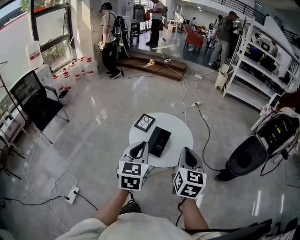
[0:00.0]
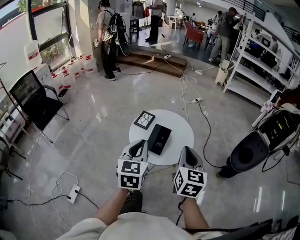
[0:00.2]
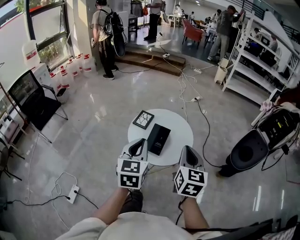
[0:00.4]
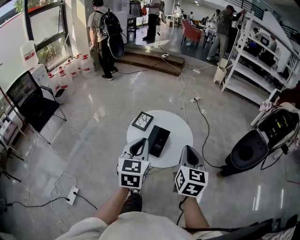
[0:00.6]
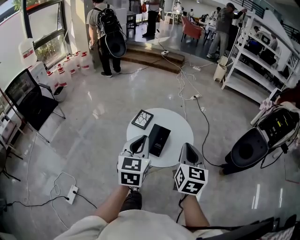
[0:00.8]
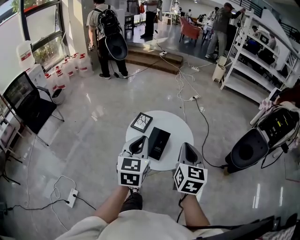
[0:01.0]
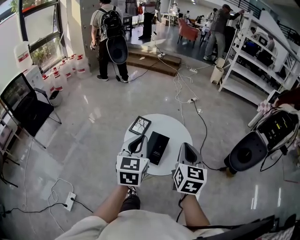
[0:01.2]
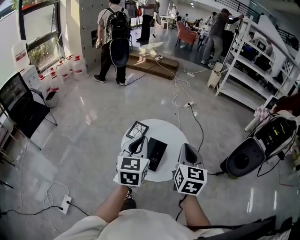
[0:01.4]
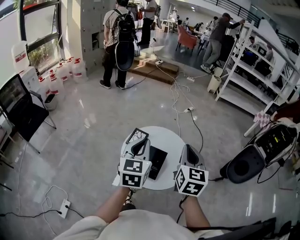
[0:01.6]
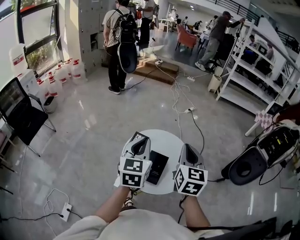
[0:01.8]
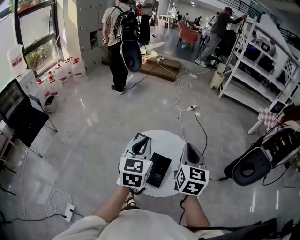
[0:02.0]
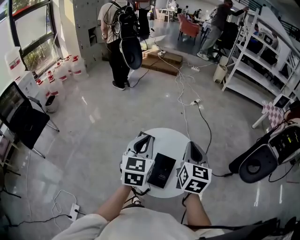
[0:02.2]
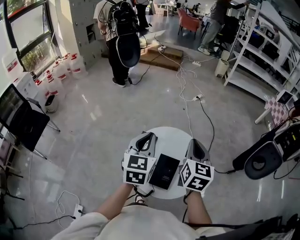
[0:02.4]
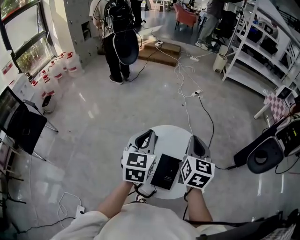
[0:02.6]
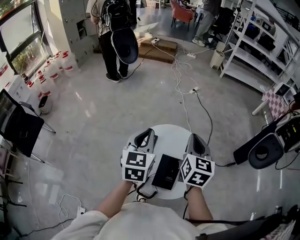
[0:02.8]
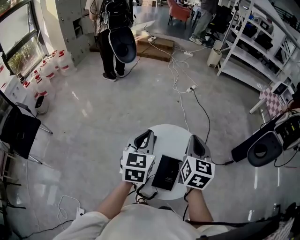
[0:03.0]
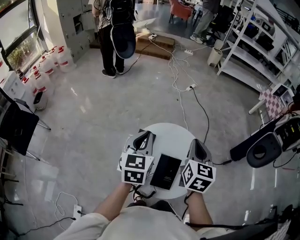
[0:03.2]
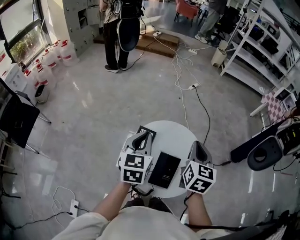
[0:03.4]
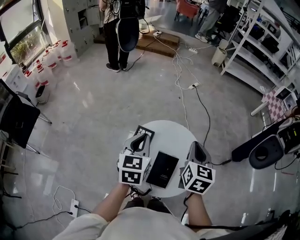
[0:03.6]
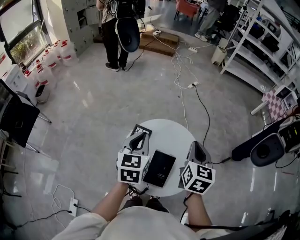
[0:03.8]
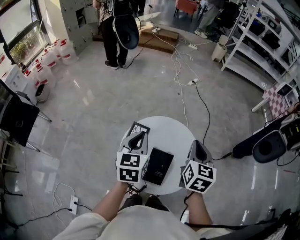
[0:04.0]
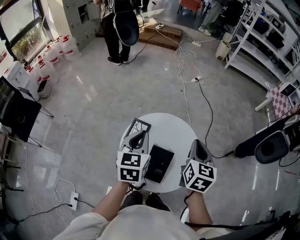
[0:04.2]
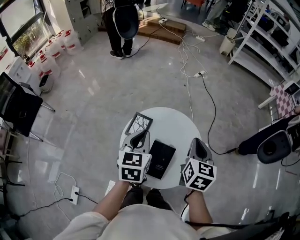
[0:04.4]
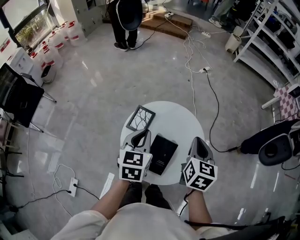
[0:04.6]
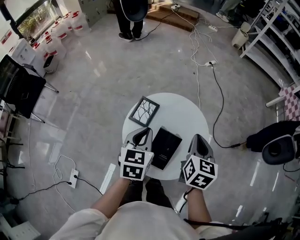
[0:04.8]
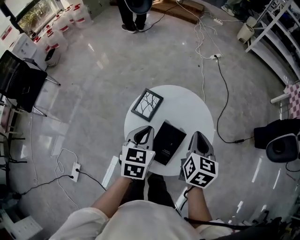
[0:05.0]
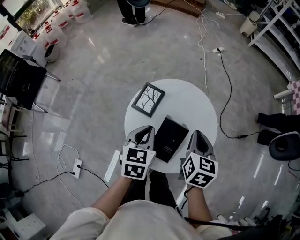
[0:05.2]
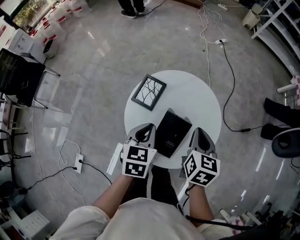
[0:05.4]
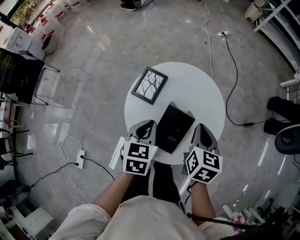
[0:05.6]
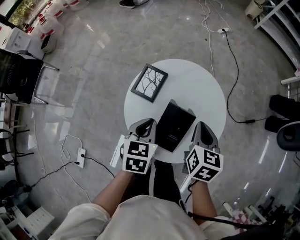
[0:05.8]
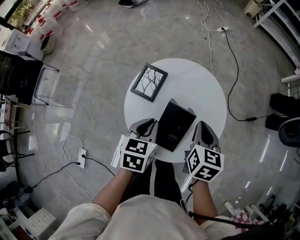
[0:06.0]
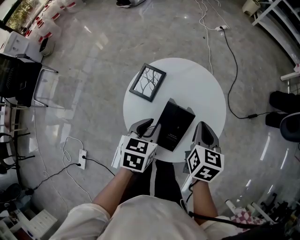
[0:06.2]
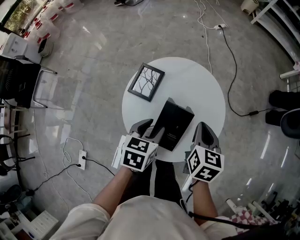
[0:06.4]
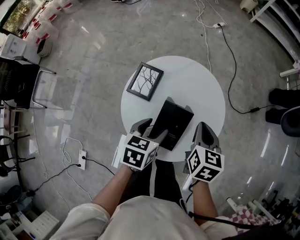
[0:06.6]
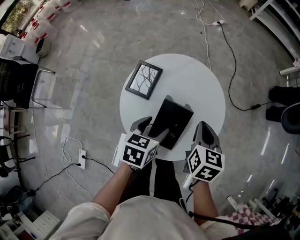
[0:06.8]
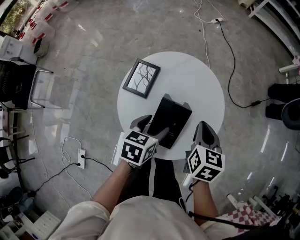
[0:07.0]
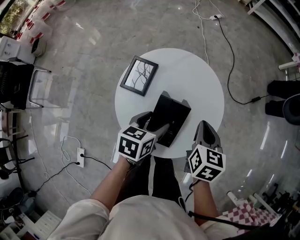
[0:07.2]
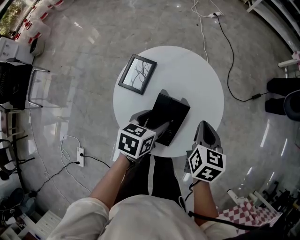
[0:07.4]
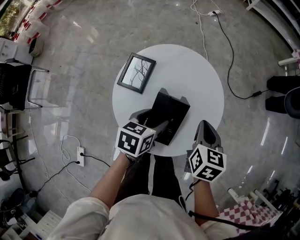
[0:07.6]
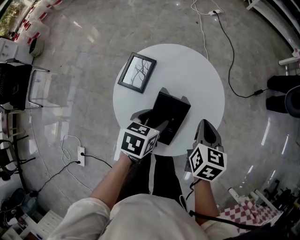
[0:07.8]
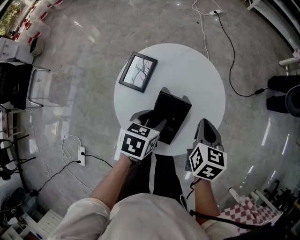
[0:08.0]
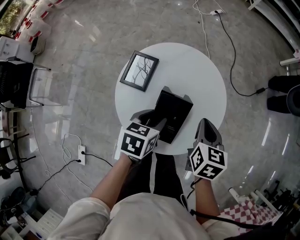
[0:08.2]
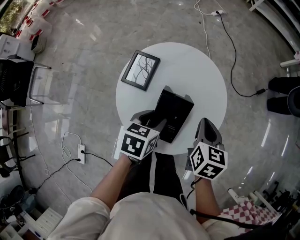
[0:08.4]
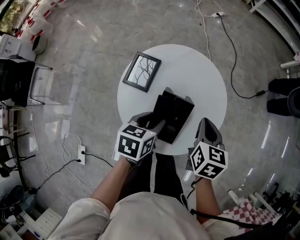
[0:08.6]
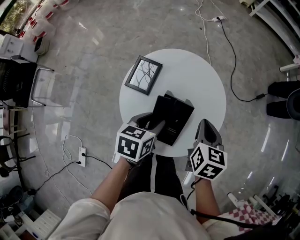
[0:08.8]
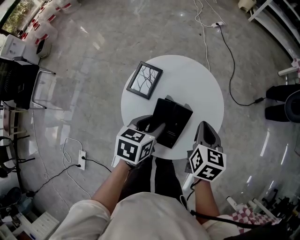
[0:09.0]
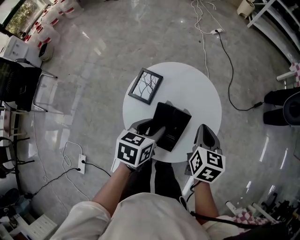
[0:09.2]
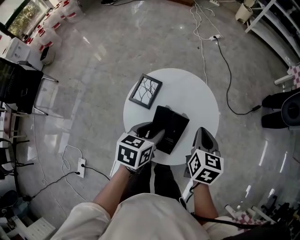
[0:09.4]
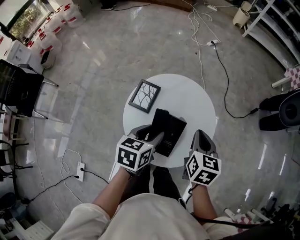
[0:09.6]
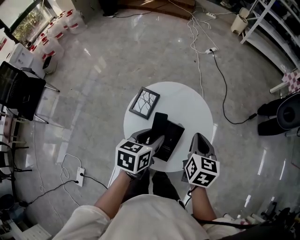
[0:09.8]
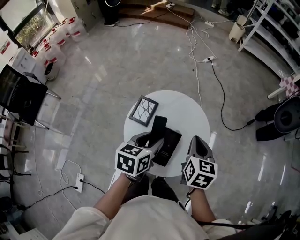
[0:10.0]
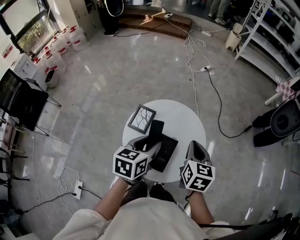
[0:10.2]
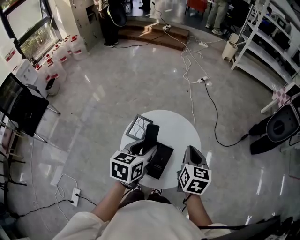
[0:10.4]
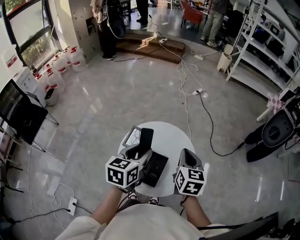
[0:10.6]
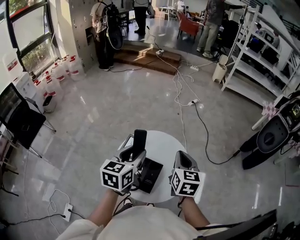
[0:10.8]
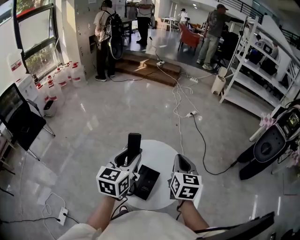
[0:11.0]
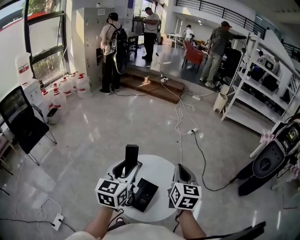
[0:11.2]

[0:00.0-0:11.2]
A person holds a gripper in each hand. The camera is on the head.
0:00.0 to 0:01.6: Both grippers travel together forward, approximately 15 cm.
0:01.6 to 0:03.2: The left gripper moves forward, downward and to the left, some 15 cm. The right gripper travels forward and downward by roughly 15 cm.
0:03.2 to 0:04.8: The left gripper travels downward and backward by approximately 10 cm, while the right gripper goes roughly 10 cm downward.
0:04.8 to 0:06.4: The right gripper travels downward by some 10 cm, while the left gripper goes some 10 cm downward and backward, rotates roughly 20 degrees, and opens its fingers.
0:06.4 to 0:08.0: The grippers stay close to where they were, moving slightly.
0:08.0 to 0:09.6: Both grippers travel together upward, approximately 5 cm.
0:09.6 to 0:11.2: The right gripper moves upward and forward, about 20 cm, and swivels roughly 30 degrees. Meanwhile the left gripper heads upward, covering about 20 cm, and turns by some 40 degrees.

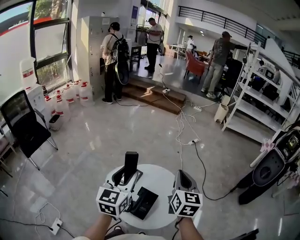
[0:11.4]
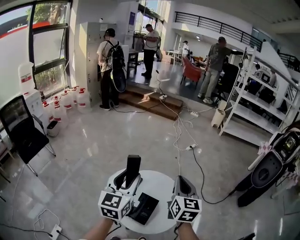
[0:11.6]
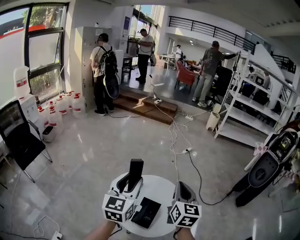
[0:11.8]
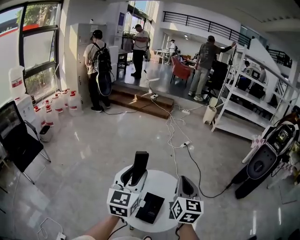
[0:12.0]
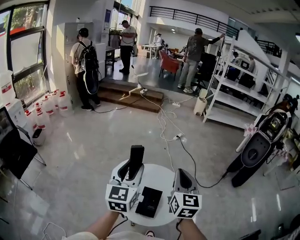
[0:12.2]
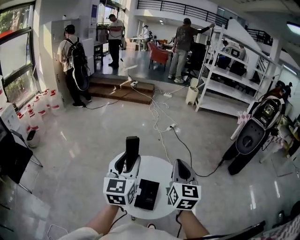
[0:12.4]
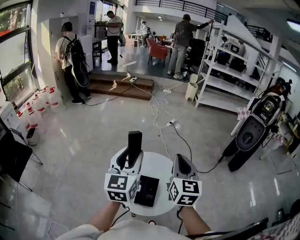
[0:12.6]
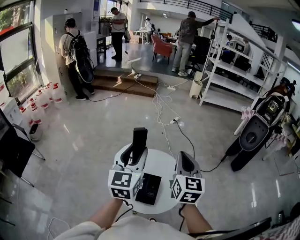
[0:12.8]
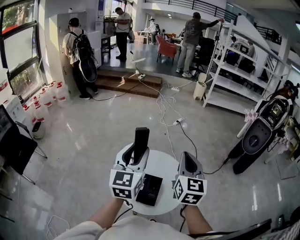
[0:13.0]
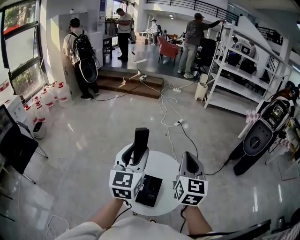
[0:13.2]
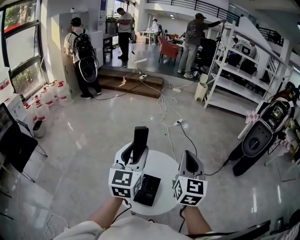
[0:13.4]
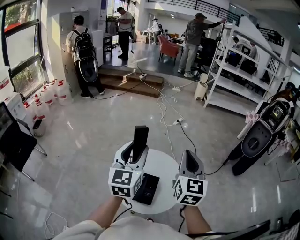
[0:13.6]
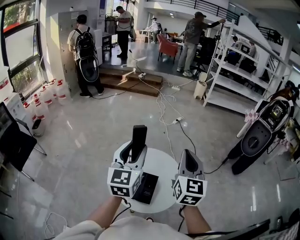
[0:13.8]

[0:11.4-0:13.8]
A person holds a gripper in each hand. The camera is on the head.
0:11.4 to 0:12.6: The right gripper shifts some 5 cm backward.
0:12.6 to 0:13.8: There are only small adjustments of the grippers.

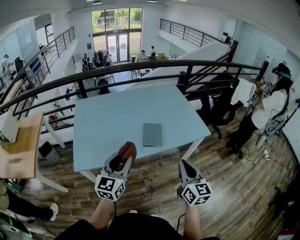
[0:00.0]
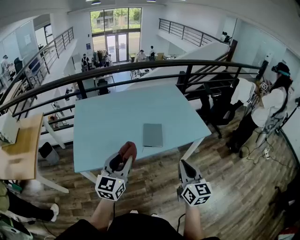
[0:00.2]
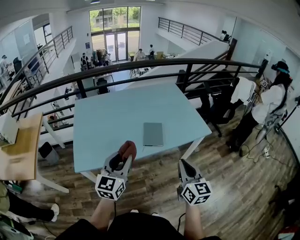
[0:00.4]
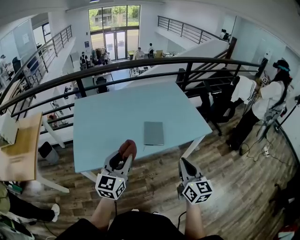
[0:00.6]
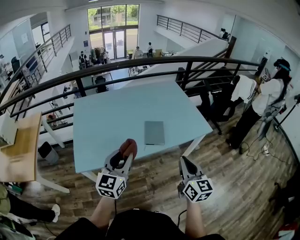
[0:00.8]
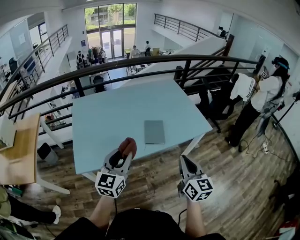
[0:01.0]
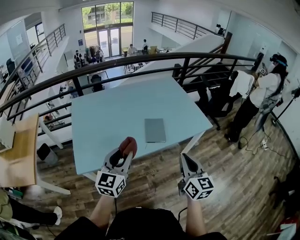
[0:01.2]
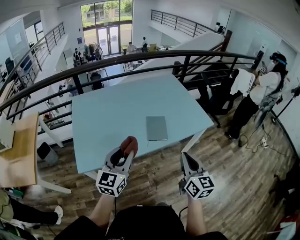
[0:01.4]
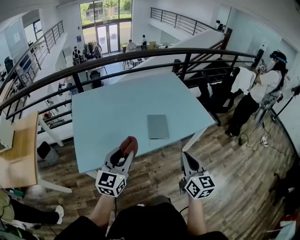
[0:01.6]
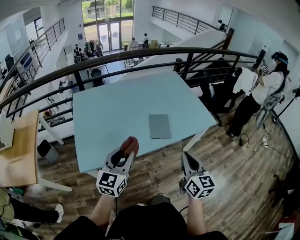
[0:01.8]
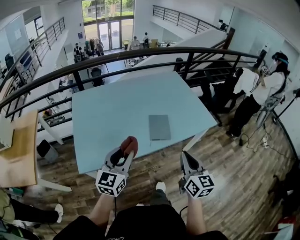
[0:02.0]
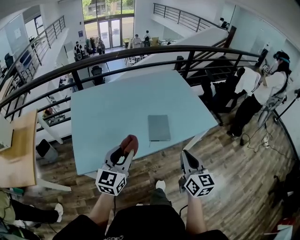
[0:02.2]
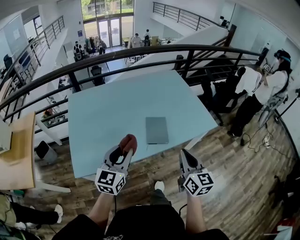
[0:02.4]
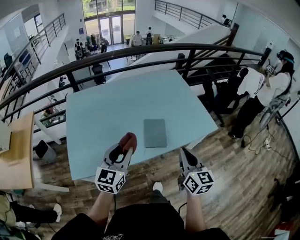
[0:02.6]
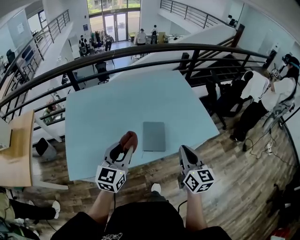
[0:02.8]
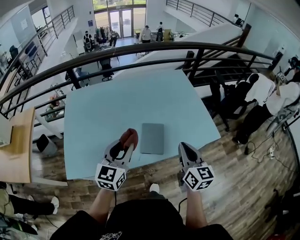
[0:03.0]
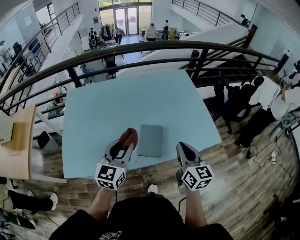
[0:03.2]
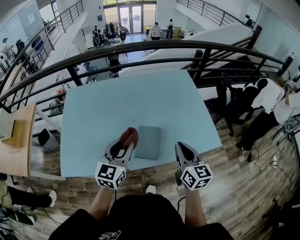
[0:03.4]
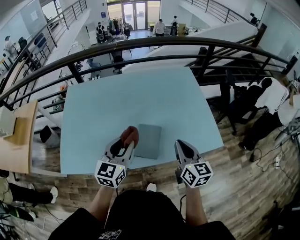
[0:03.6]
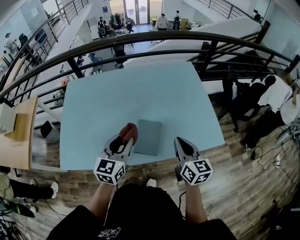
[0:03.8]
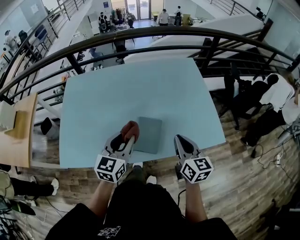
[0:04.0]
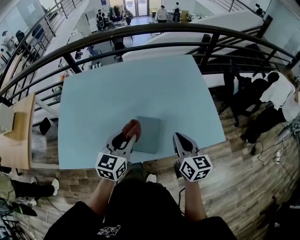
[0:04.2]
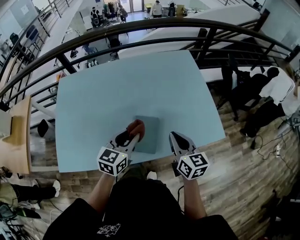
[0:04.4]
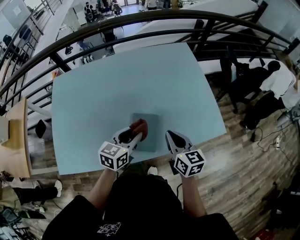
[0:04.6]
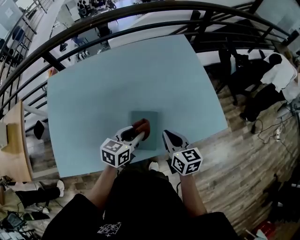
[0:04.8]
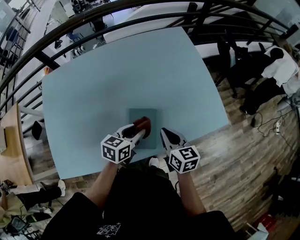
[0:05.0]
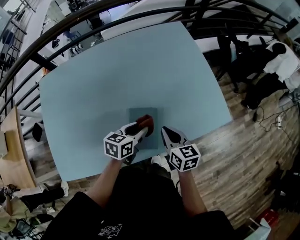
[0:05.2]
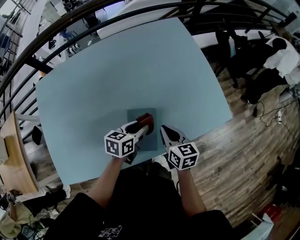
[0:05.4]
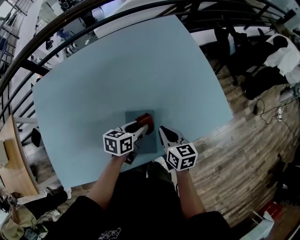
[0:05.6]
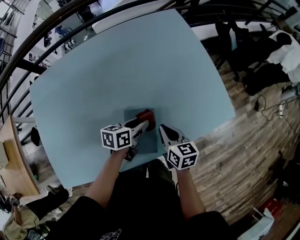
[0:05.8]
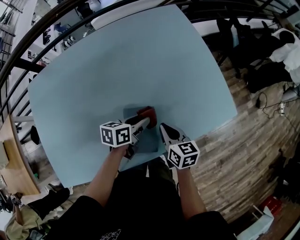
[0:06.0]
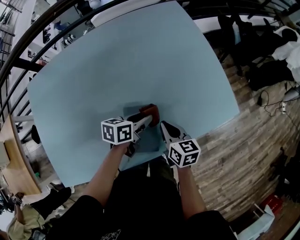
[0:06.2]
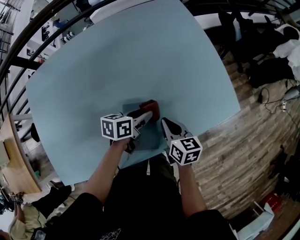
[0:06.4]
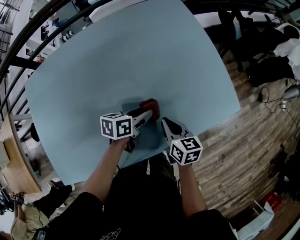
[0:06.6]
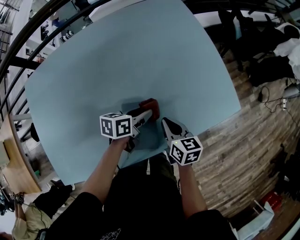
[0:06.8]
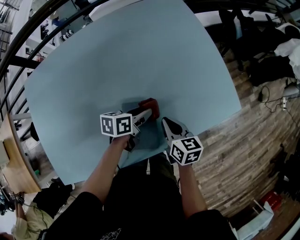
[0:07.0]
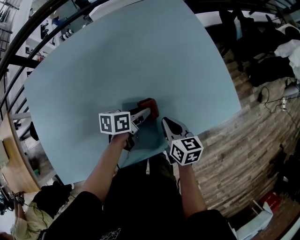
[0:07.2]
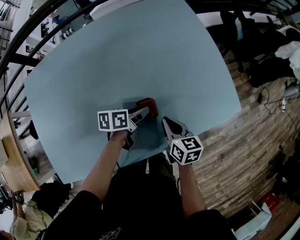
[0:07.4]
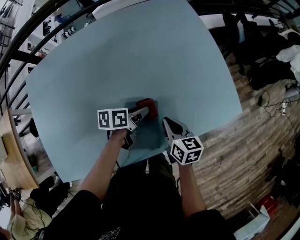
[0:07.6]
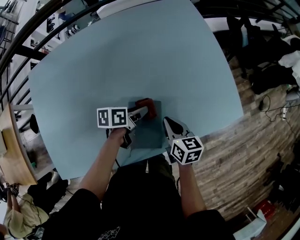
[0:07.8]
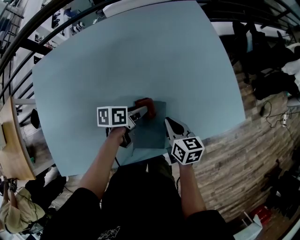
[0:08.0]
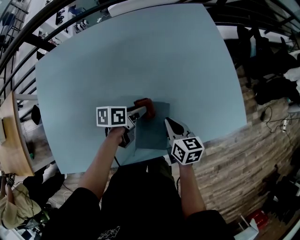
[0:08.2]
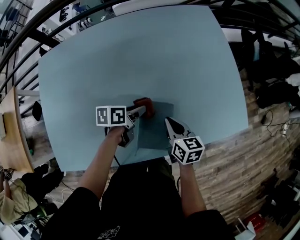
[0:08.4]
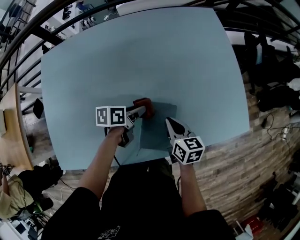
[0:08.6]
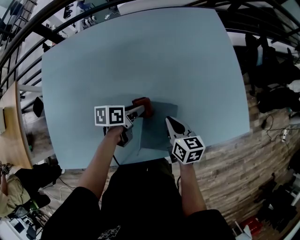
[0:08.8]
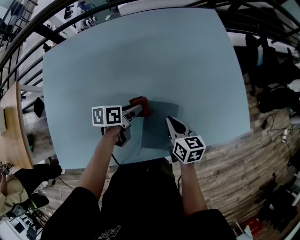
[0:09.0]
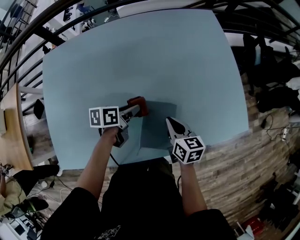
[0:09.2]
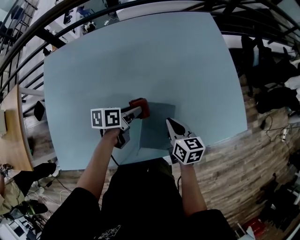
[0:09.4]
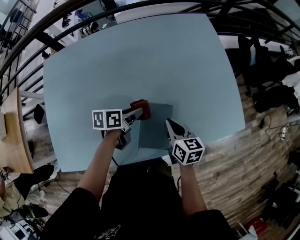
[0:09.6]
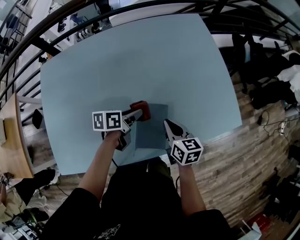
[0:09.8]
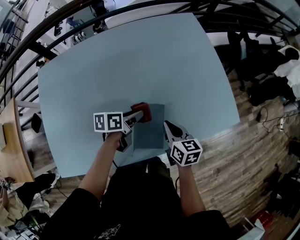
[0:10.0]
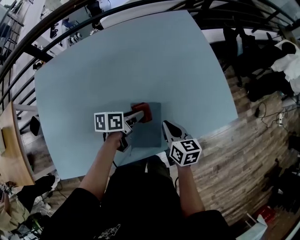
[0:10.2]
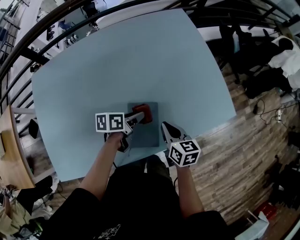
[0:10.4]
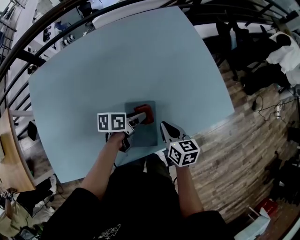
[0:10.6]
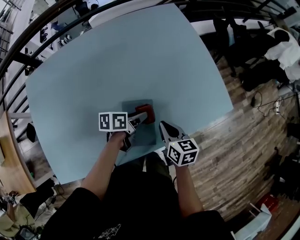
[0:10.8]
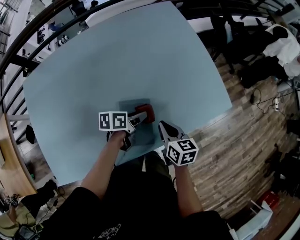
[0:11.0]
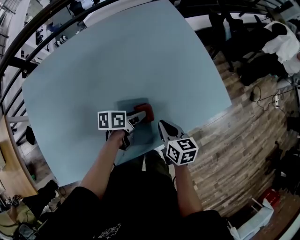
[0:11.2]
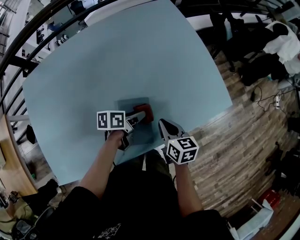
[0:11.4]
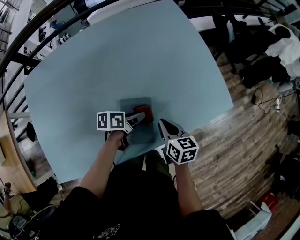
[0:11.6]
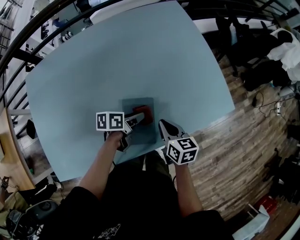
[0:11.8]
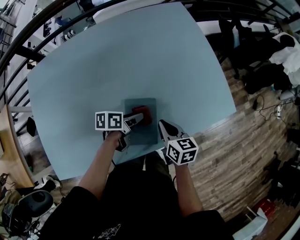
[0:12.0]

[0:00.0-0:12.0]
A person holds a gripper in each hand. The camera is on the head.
0:00.0 to 0:01.6: The grippers both shift to the left by roughly 5 cm.
0:01.6 to 0:03.0: The right gripper is displaced forward by approximately 25 cm, while the left gripper moves forward and to the right, some 20 cm.
0:03.0 to 0:04.4: The left gripper moves to the right, forward and downward, some 20 cm, while the right gripper is displaced forward and downward by about 15 cm.
0:04.4 to 0:06.0: The left gripper shifts about 25 cm downward and forward, and changes its angle by some 40 degrees. Meanwhile the right gripper travels downward by about 20 cm, and rotates about 20 degrees.
0:06.0 to 0:07.6: There are only small adjustments of the grippers.
0:07.6 to 0:09.0: The right gripper heads to the left, covering roughly 10 cm. The left gripper travels to the left by some 15 cm.
0:09.0 to 0:10.4: The two grippers go some 10 cm to the right.
0:10.4 to 0:12.0: The grippers make only small movements.
